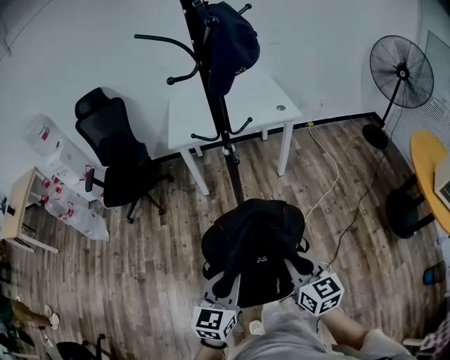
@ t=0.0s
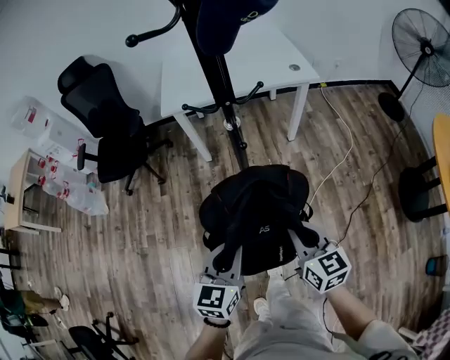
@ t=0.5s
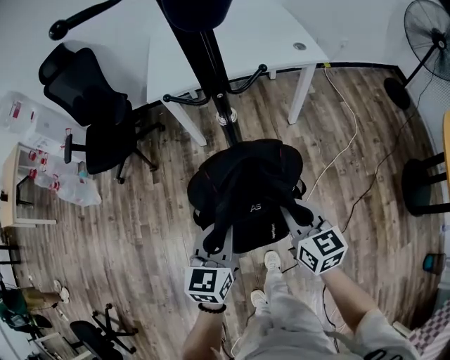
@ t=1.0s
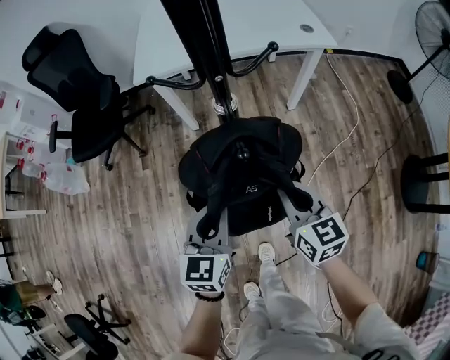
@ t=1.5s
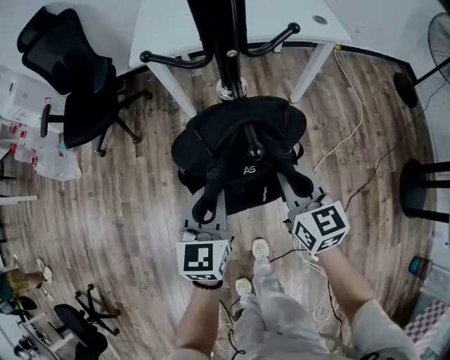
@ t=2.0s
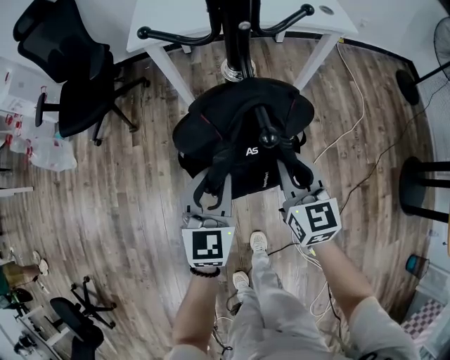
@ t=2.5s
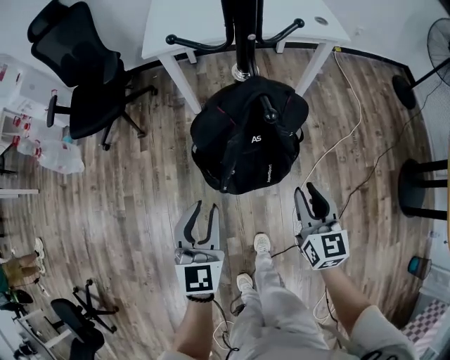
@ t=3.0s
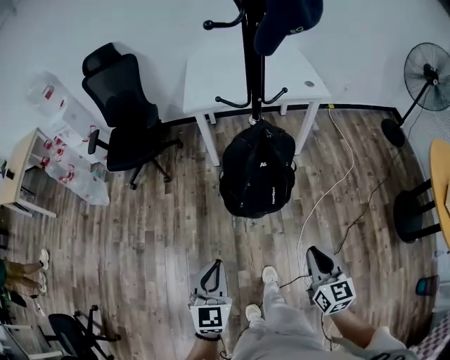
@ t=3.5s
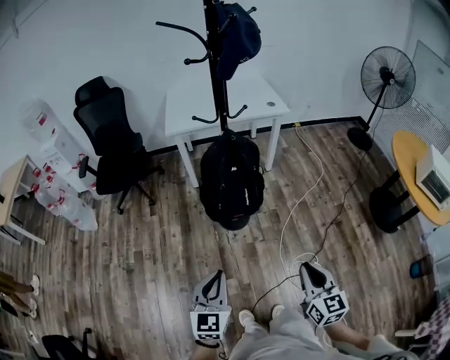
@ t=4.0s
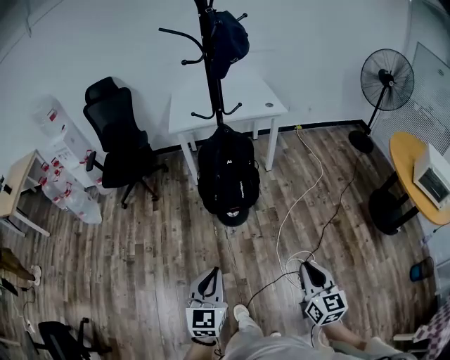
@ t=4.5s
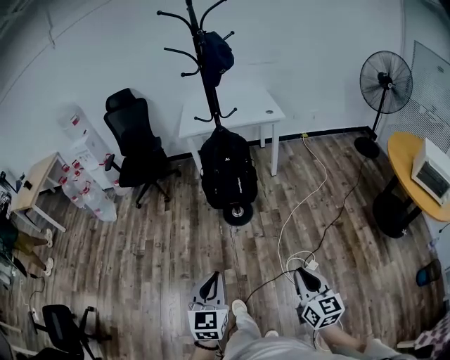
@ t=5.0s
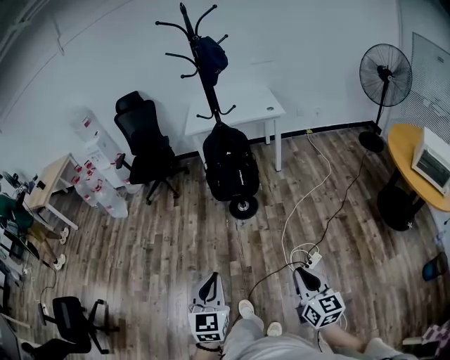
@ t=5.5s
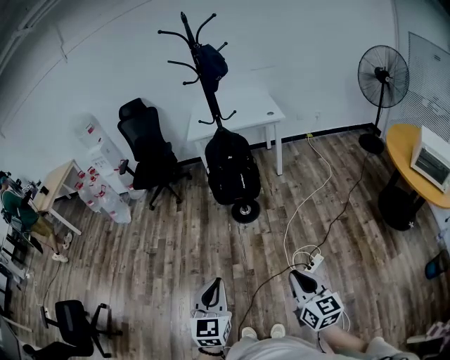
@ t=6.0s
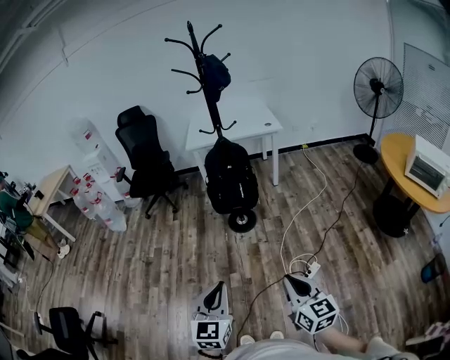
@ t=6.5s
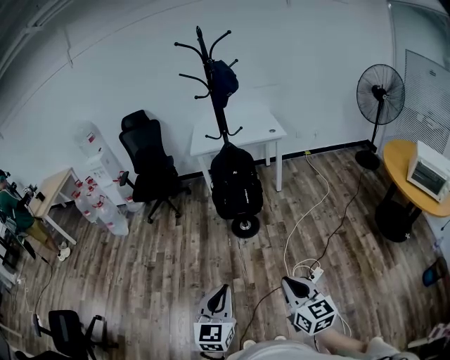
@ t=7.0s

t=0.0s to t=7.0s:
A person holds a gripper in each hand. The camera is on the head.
t=0.0s to t=2.0s: The grippers both shift forward and downward by about 40 cm.
t=2.0s to t=3.5s: The grippers both shift backward by about 35 cm. The left gripper opens, then closes again. The right gripper opens and closes again.
t=3.5s to t=5.0s: Both grippers travel together backward, about 40 cm.
t=5.0s to t=7.0s: The left gripper heads backward, covering about 15 cm. The right gripper shifts roughly 15 cm backward, to the left and upward.

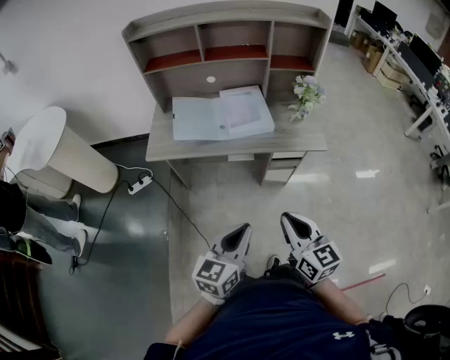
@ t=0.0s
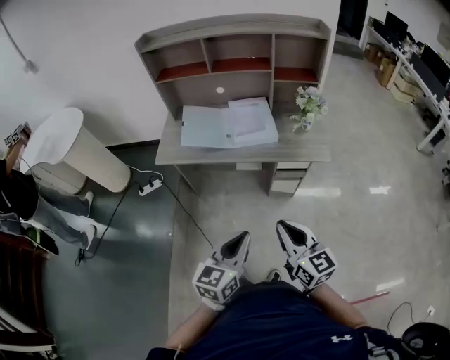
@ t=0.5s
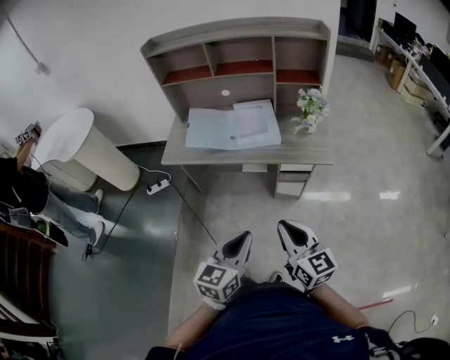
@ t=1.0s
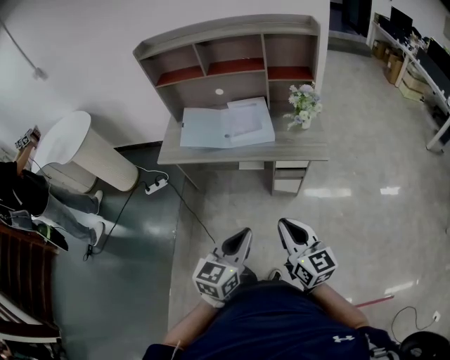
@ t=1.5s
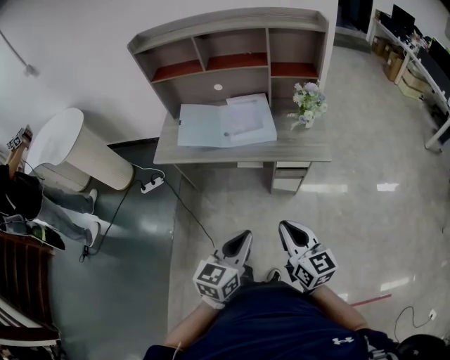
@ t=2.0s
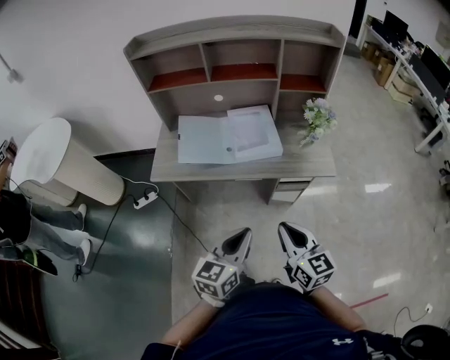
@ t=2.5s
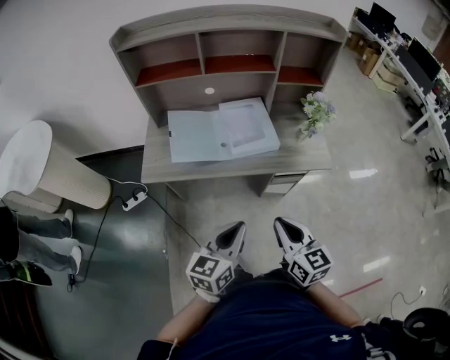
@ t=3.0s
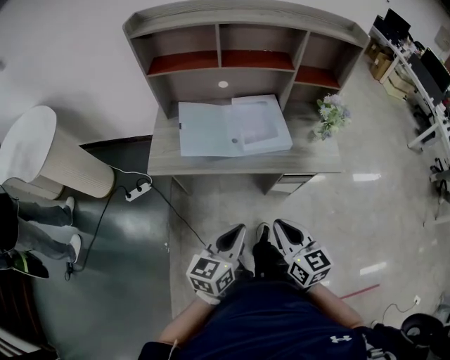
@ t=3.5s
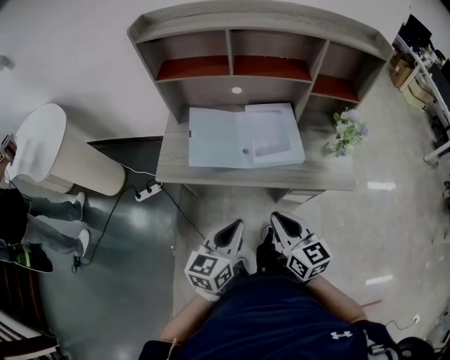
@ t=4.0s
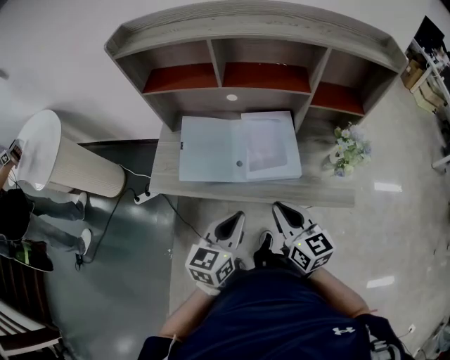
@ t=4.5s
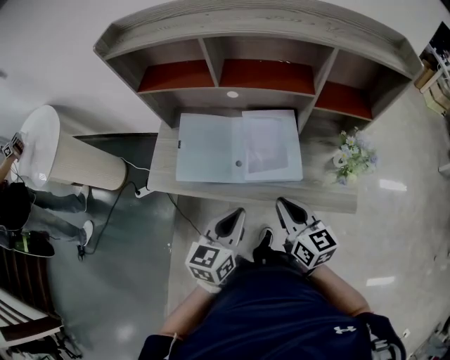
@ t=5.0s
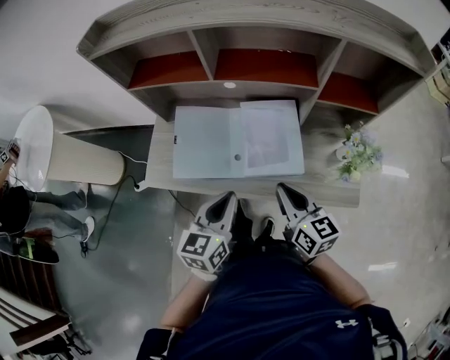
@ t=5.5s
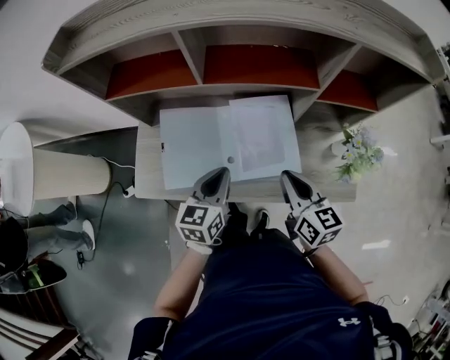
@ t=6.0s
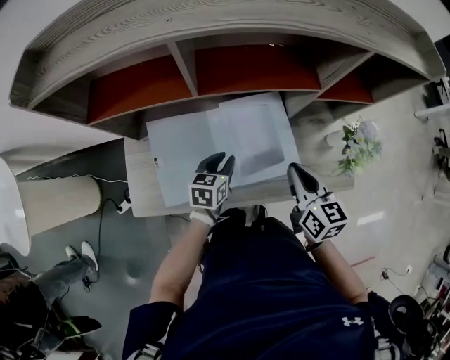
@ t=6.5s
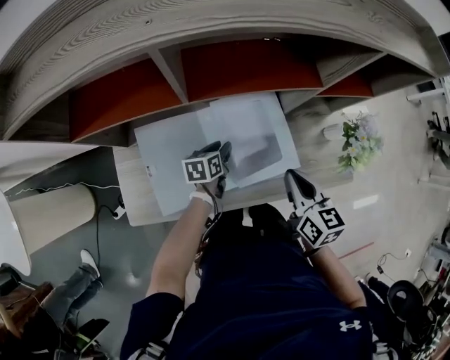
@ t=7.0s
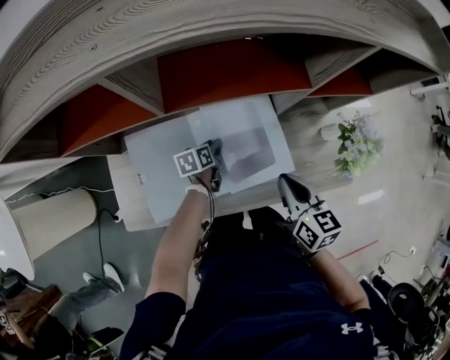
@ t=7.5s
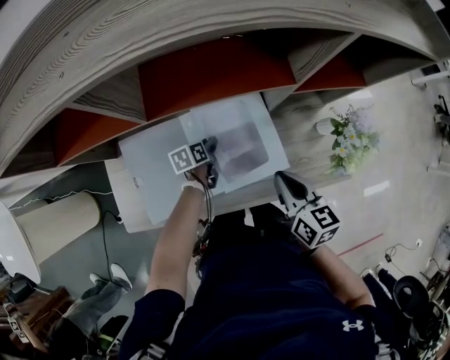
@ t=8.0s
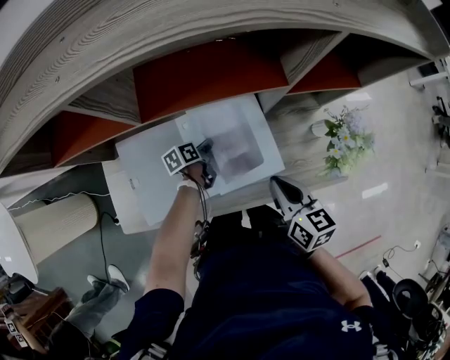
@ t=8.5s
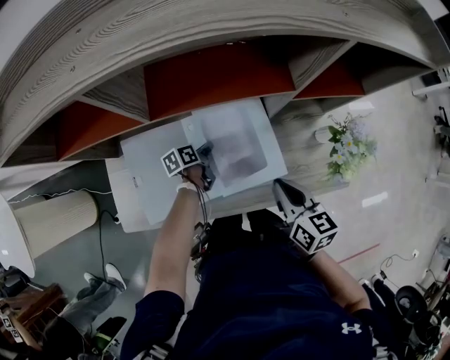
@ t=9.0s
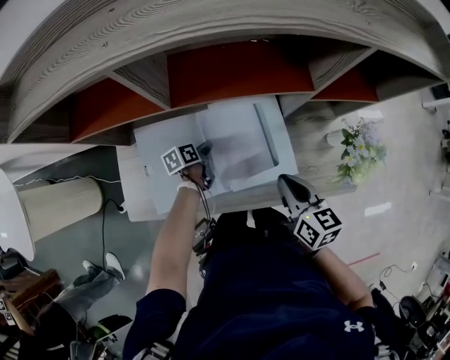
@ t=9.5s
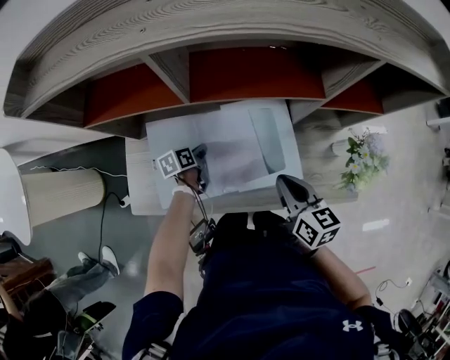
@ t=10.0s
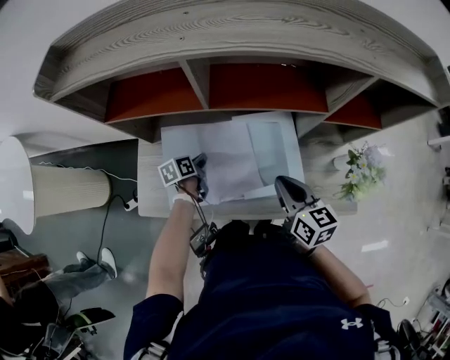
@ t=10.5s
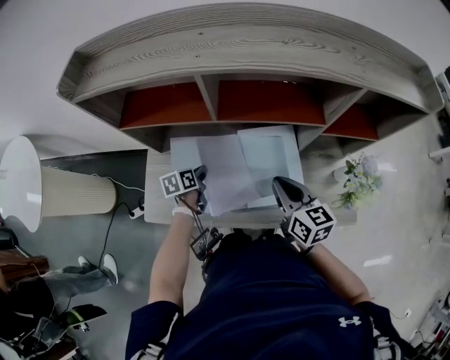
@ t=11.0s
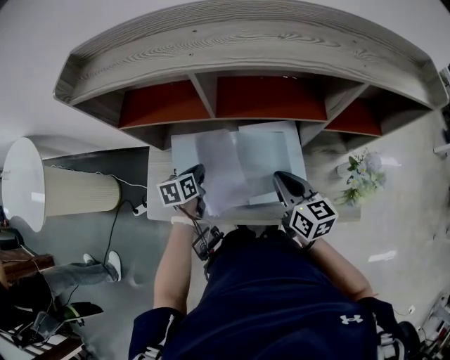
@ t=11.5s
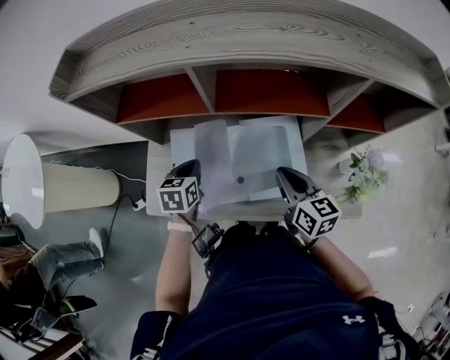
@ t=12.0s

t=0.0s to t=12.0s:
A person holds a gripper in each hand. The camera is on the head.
t=0.0s to t=2.0s: Both grippers travel together to the right, some 10 cm.
t=2.0s to t=4.0s: The two grippers go roughly 25 cm forward and to the left.
t=4.0s to t=6.0s: Both grippers move forward, roughly 30 cm.
t=6.0s to t=8.0s: The left gripper travels downward and forward by some 30 cm, changes its angle by some 40 degrees, and opens up. Meanwhile the right gripper heads downward, covering roughly 5 cm.
t=8.0s to t=10.0s: The left gripper goes roughly 10 cm to the left, and closes.
t=10.0s to t=12.0s: The right gripper ends up roughly 5 cm from where it was; the left gripper travels upward by some 15 cm, and rotates some 30 degrees.

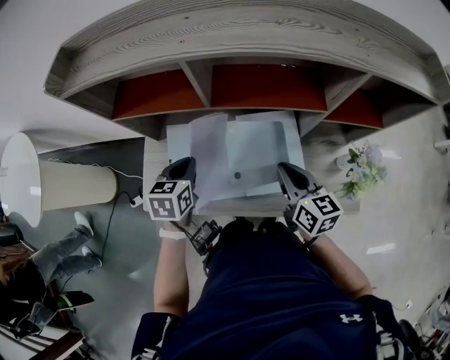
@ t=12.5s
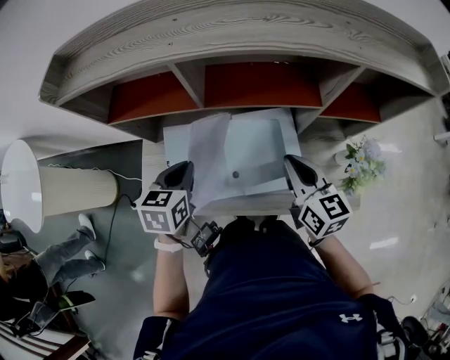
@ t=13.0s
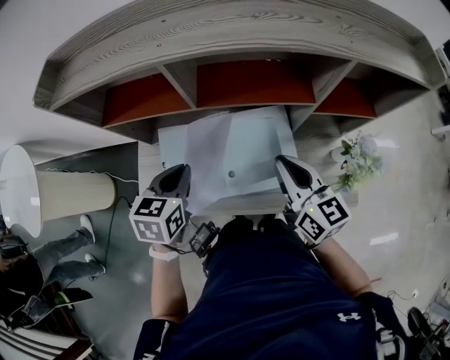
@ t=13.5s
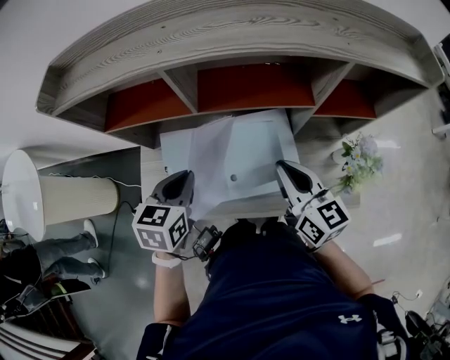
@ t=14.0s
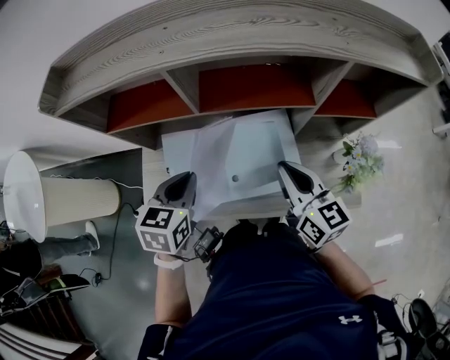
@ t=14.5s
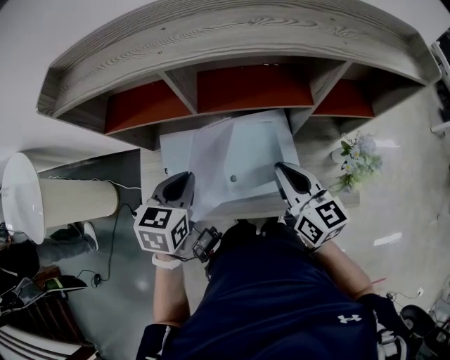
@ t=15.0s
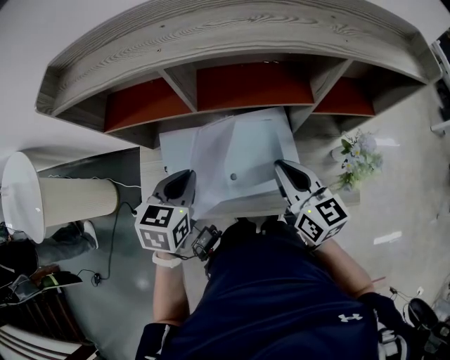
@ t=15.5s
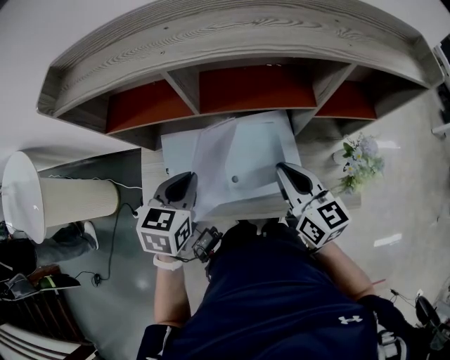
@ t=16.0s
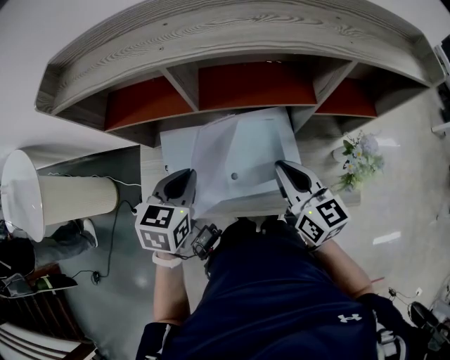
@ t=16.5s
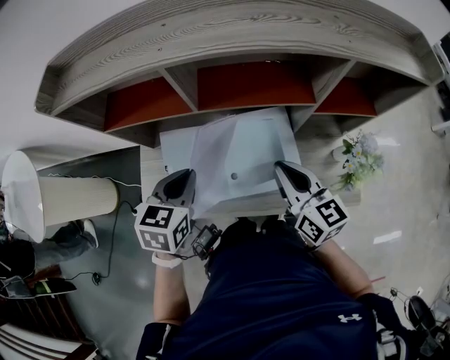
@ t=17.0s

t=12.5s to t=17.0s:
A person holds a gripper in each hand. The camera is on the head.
t=12.5s to t=14.5s: The two grippers go roughly 5 cm upward.
t=14.5s to t=17.0s: The two grippers keep their place.

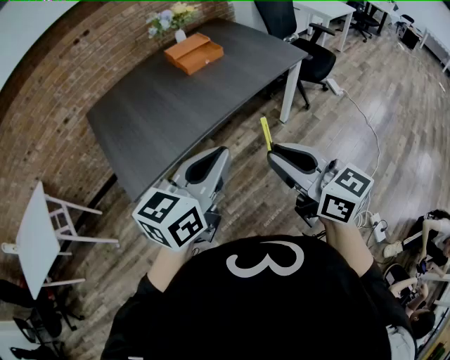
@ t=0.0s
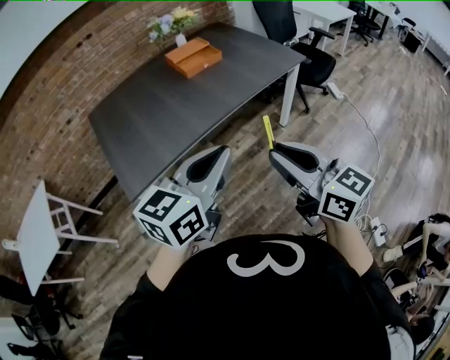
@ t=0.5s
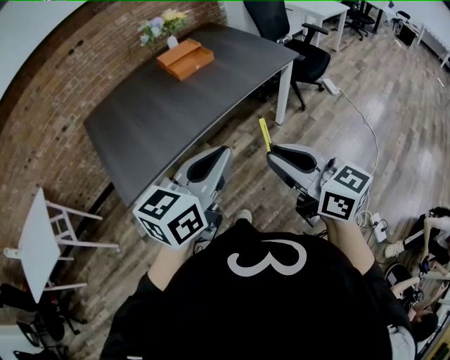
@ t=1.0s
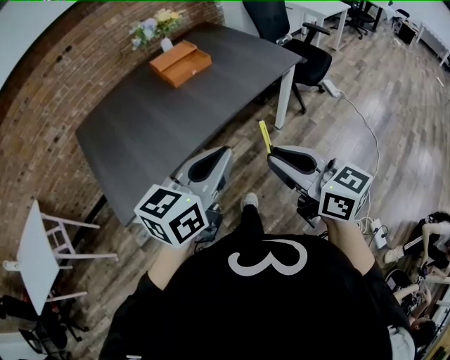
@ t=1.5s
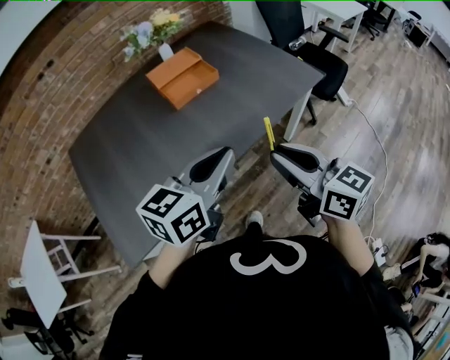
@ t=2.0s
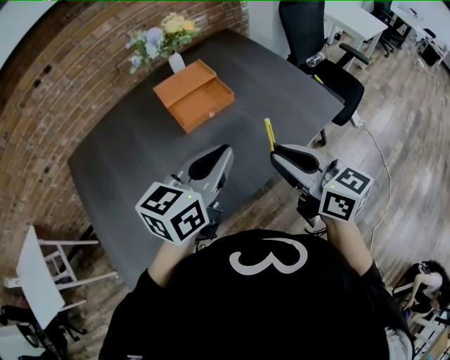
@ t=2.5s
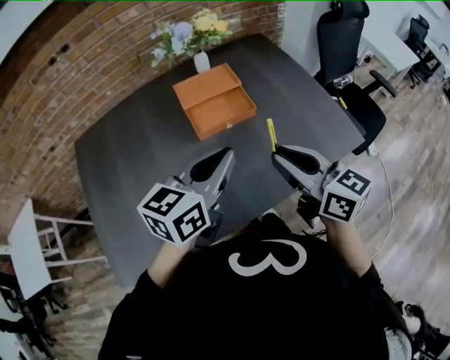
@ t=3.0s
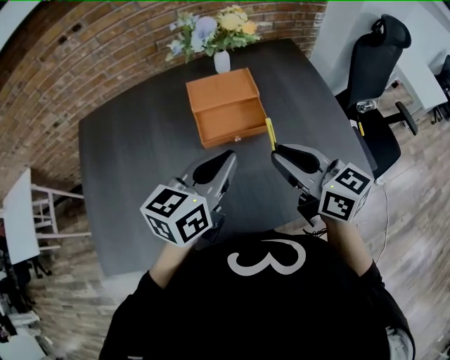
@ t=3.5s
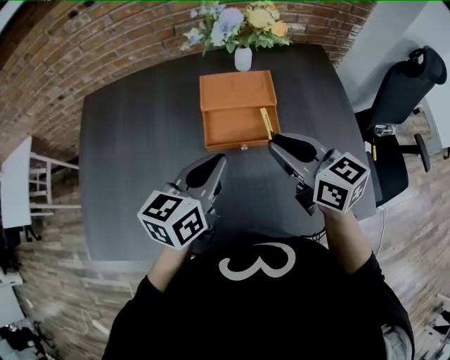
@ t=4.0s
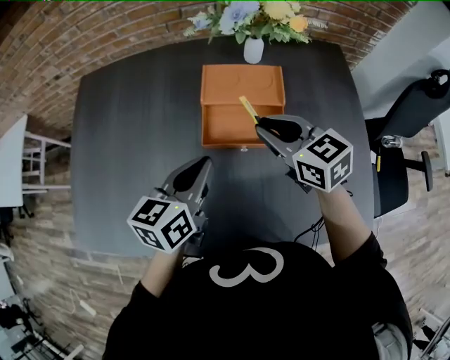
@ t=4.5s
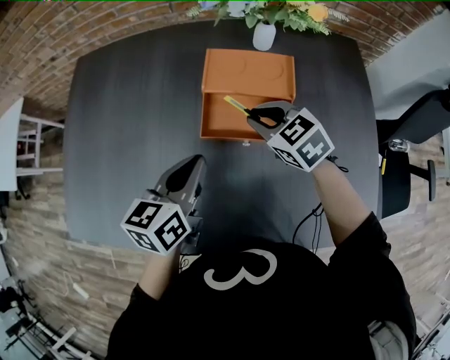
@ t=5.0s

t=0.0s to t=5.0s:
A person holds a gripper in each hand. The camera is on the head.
t=0.0s to t=2.5s: The two grippers travel together, forward, approximately 40 cm.
t=2.5s to t=5.0s: The right gripper moves some 40 cm, and tilts its fingers about 40 degrees downward; the left gripper shifts by about 25 cm, and turns by approximately 50 degrees.
